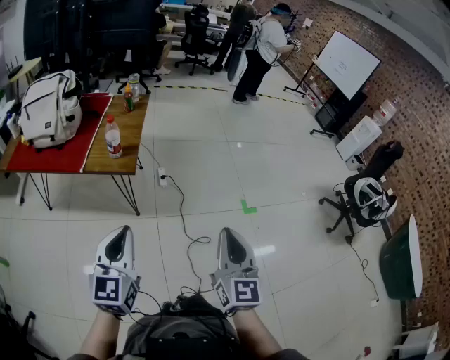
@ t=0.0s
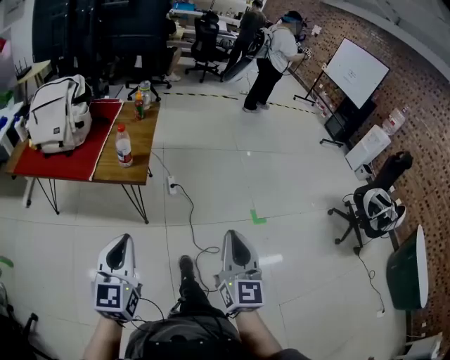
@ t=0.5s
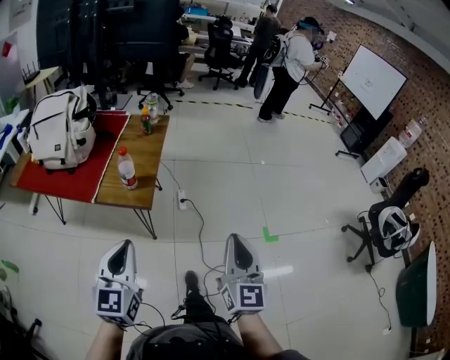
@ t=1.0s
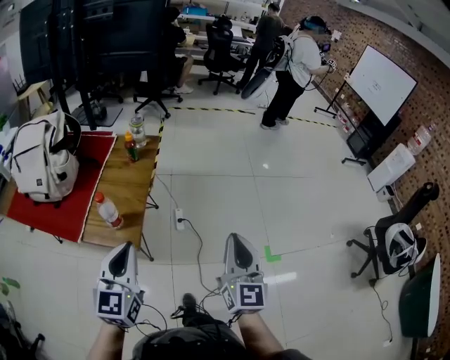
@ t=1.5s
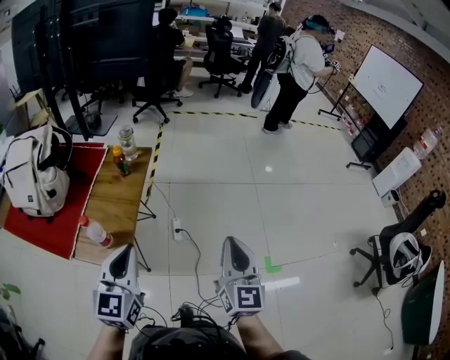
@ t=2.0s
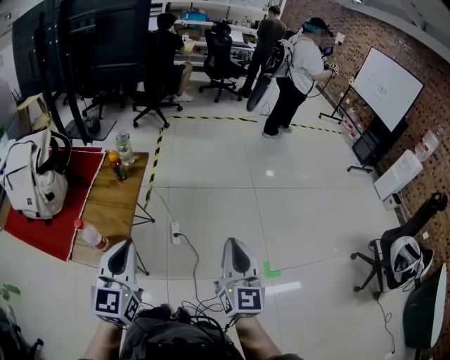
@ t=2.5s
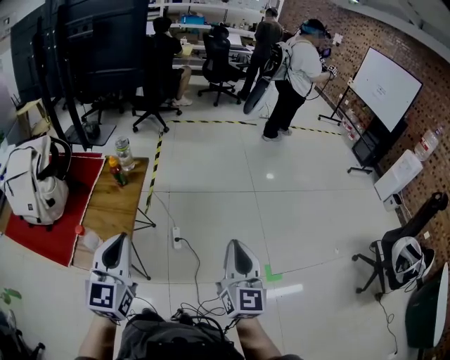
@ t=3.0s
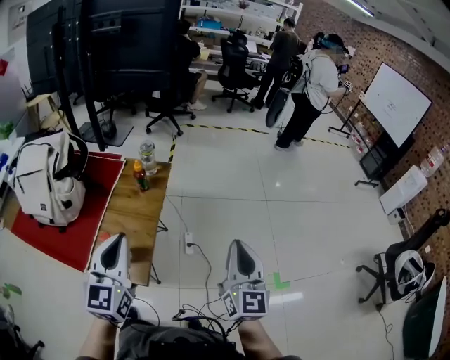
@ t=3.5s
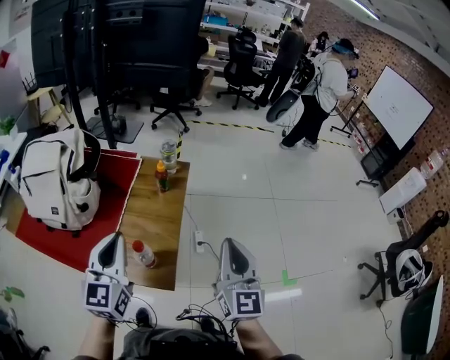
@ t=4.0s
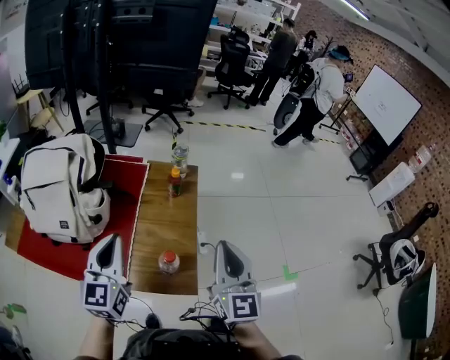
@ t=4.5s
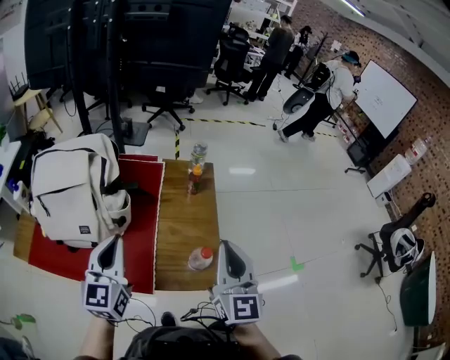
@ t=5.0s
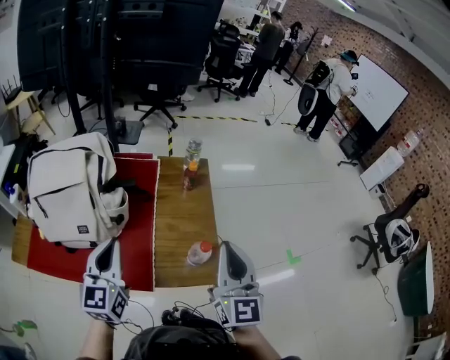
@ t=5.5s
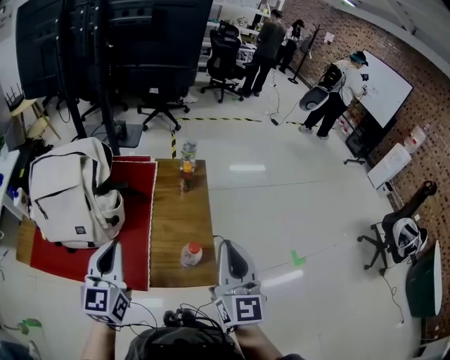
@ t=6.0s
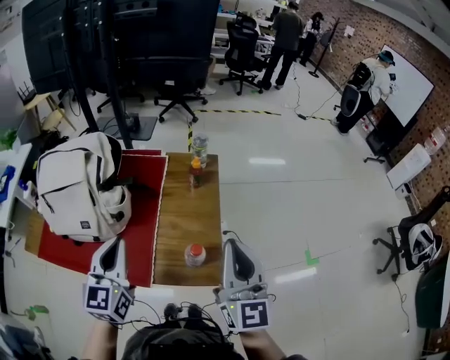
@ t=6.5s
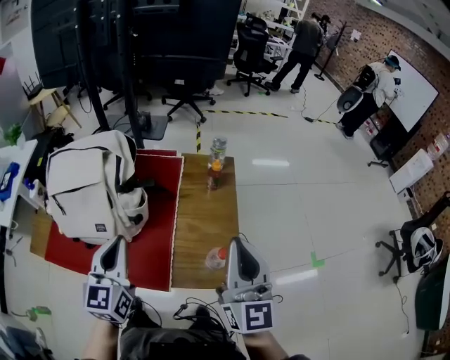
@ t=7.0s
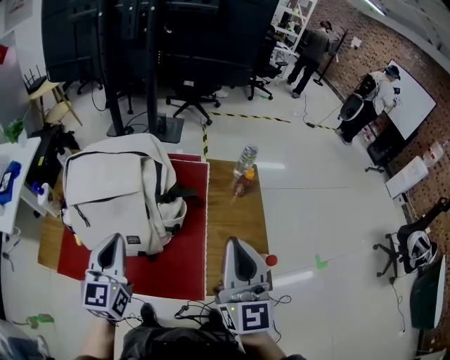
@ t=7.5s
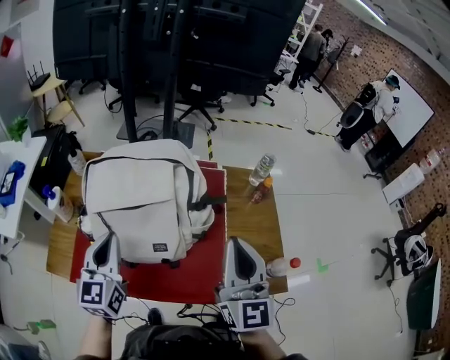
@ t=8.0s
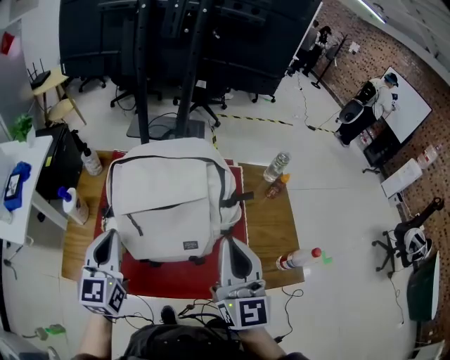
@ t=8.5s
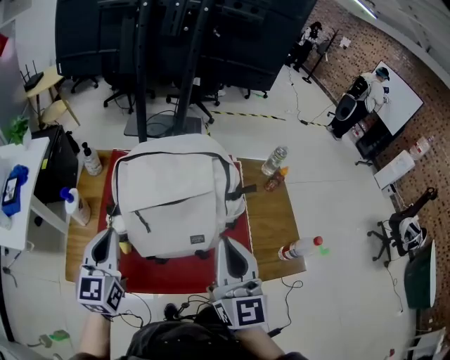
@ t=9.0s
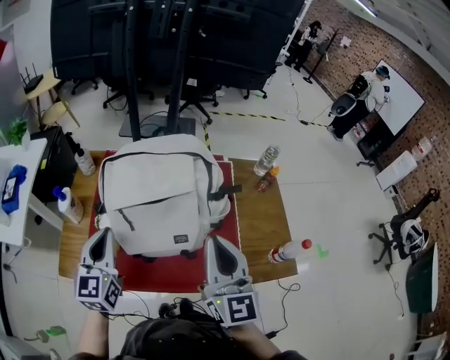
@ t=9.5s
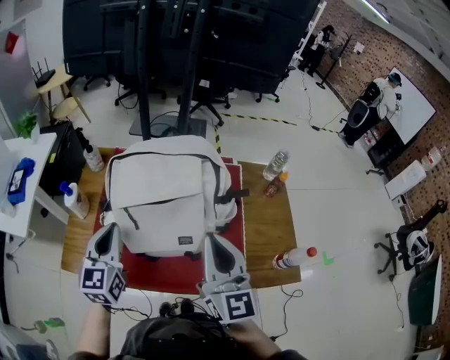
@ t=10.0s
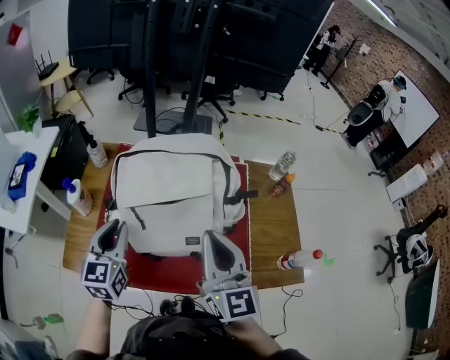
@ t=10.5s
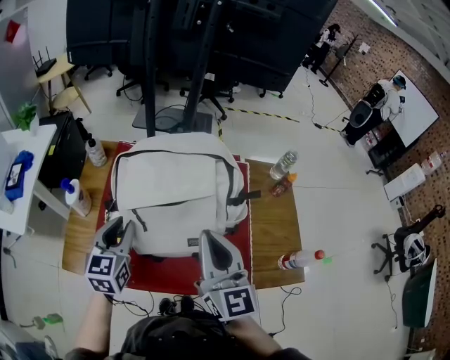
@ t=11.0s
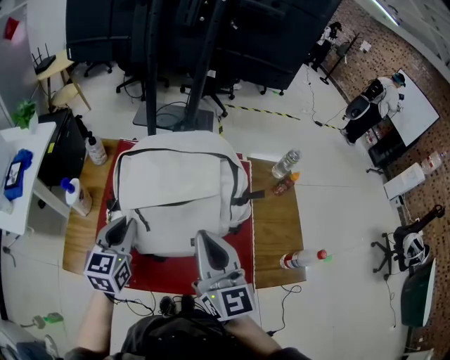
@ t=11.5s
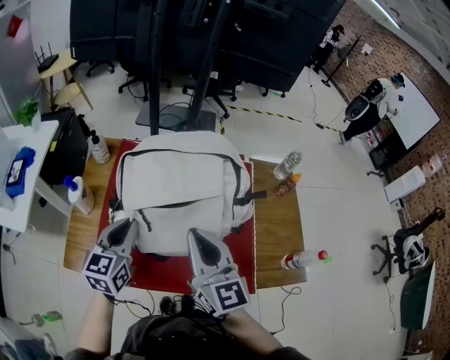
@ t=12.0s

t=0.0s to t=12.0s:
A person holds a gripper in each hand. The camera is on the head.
t=0.0s to t=2.0s: Both grippers are carried forward, some 50 cm.
t=2.0s to t=4.0s: Both grippers move to the left, roughly 25 cm.
t=4.0s to t=6.0s: The two grippers go approximately 20 cm to the left.
t=6.0s to t=8.0s: The two grippers go roughly 35 cm to the left.
t=8.0s to t=10.0s: Both grippers travel together to the left, about 10 cm.
t=10.0s to t=12.0s: The right gripper travels to the left by roughly 10 cm, while the left gripper moves roughly 5 cm.

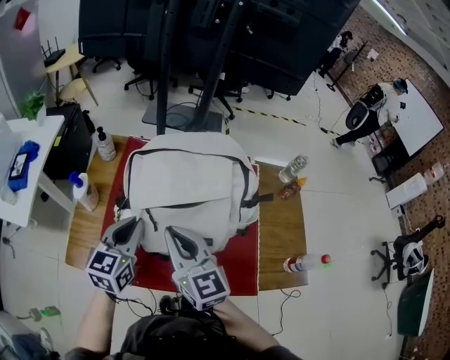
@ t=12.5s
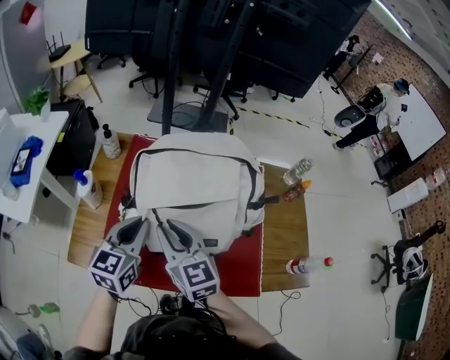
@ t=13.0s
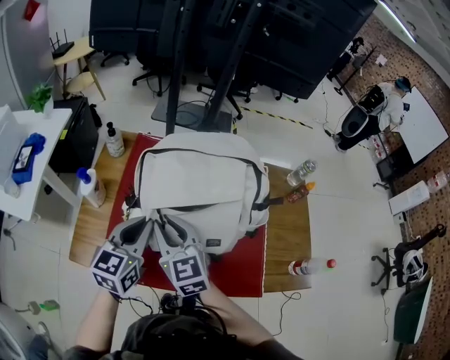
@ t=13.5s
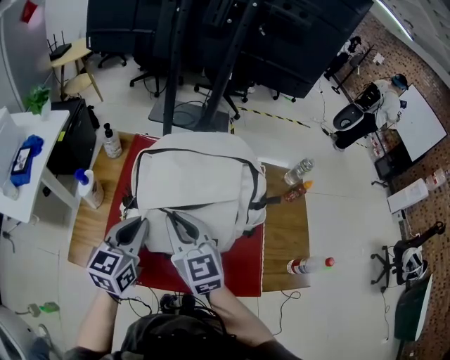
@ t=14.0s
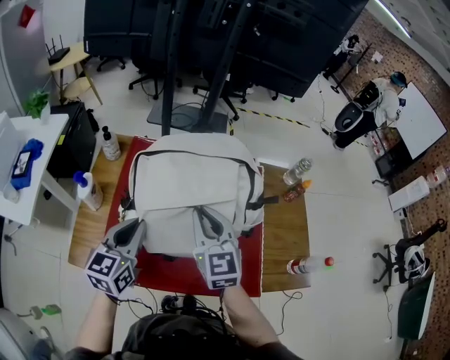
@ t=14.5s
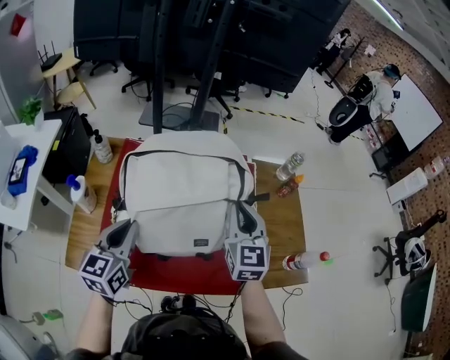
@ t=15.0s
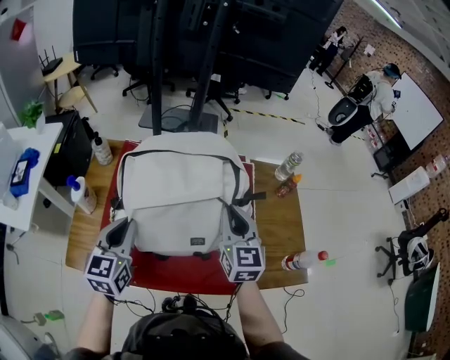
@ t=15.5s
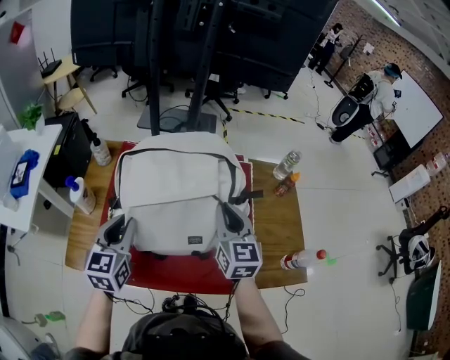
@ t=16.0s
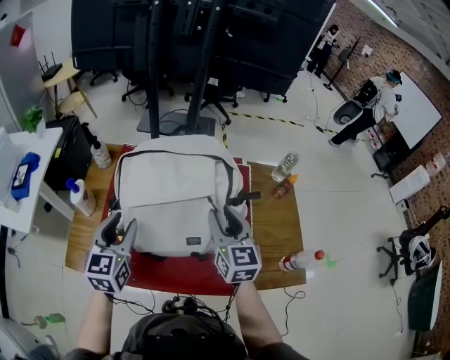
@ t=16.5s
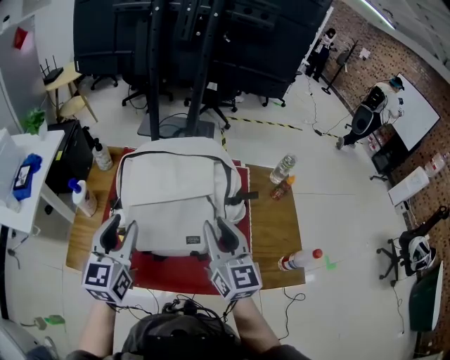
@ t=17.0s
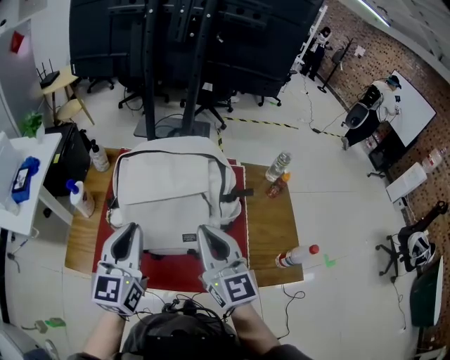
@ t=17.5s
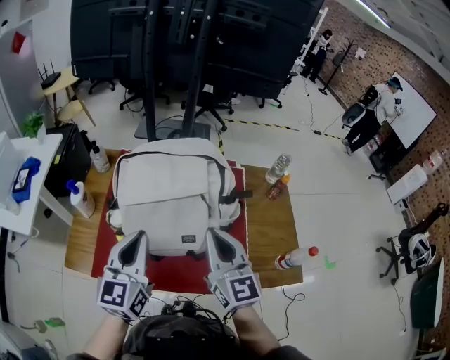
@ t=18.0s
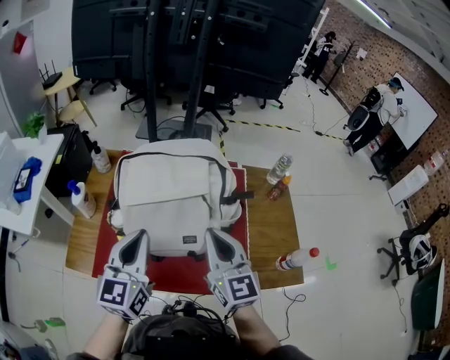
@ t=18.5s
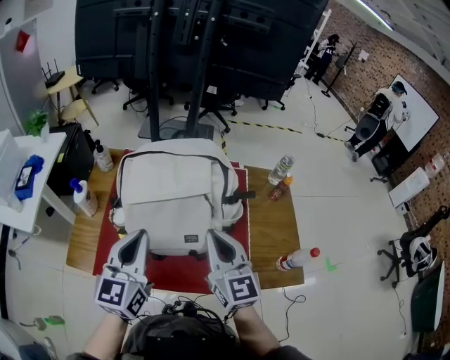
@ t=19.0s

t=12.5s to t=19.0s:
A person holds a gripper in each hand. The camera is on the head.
t=12.5s to t=14.5s: The right gripper heads forward and to the right, covering about 10 cm.
t=14.5s to t=17.0s: The left gripper travels upward by about 5 cm, and opens; the right gripper is displaced to the right and backward by some 10 cm.
t=17.0s to t=19.0s: The right gripper closes up, while the left gripper is displaced to the right by roughly 5 cm, and closes.

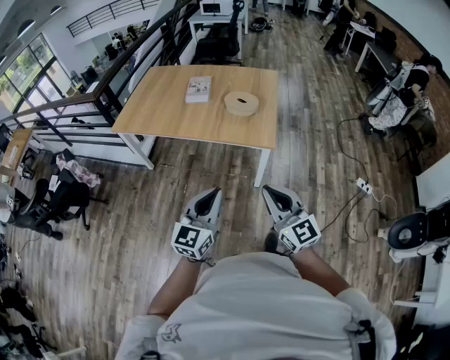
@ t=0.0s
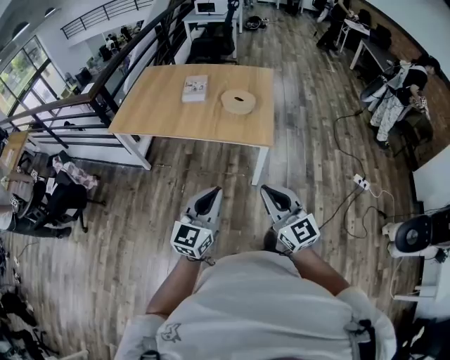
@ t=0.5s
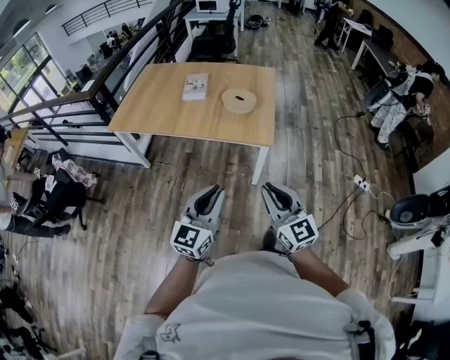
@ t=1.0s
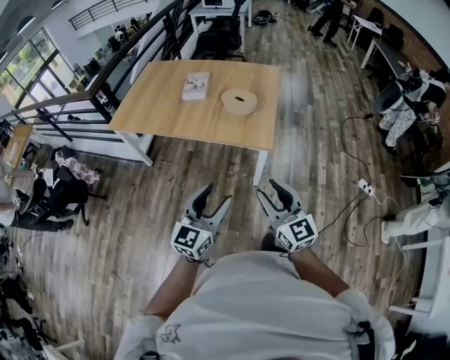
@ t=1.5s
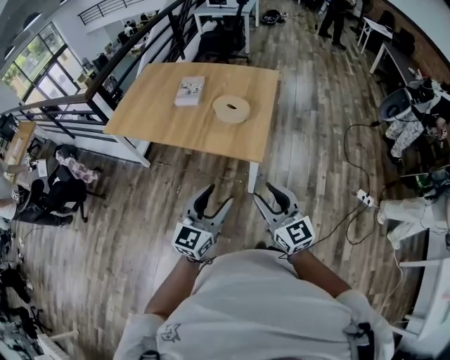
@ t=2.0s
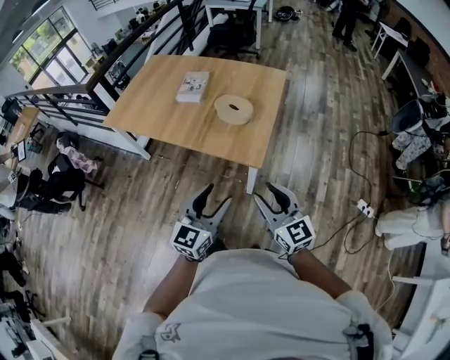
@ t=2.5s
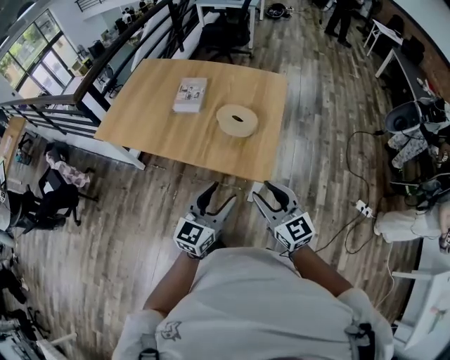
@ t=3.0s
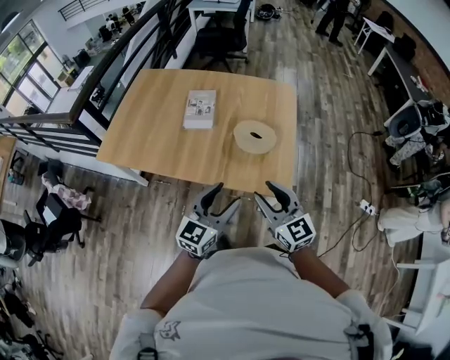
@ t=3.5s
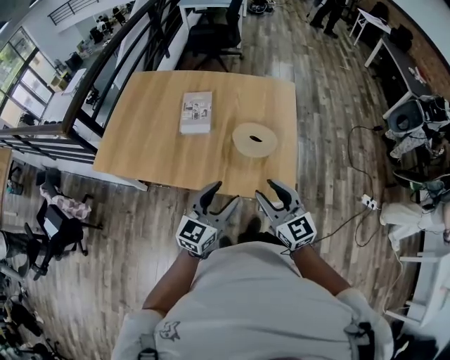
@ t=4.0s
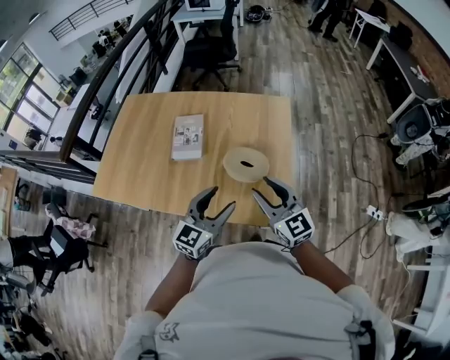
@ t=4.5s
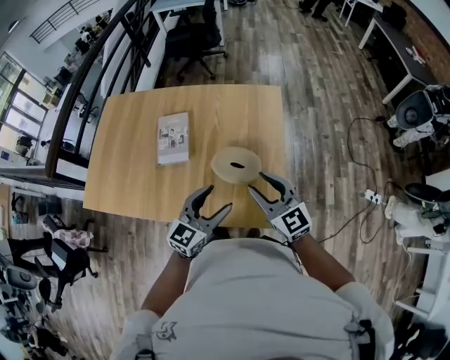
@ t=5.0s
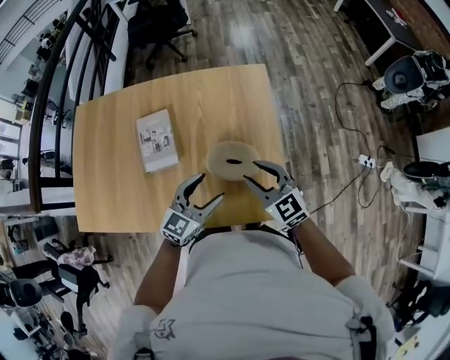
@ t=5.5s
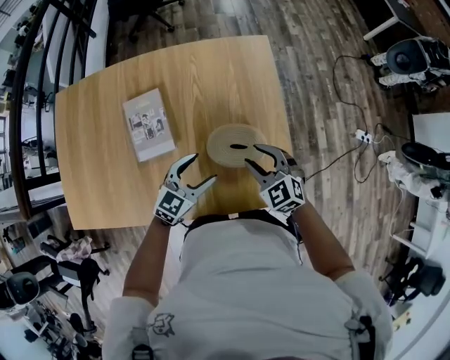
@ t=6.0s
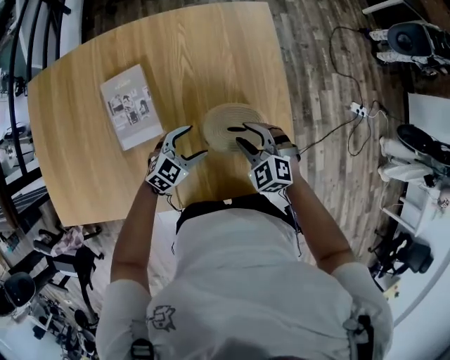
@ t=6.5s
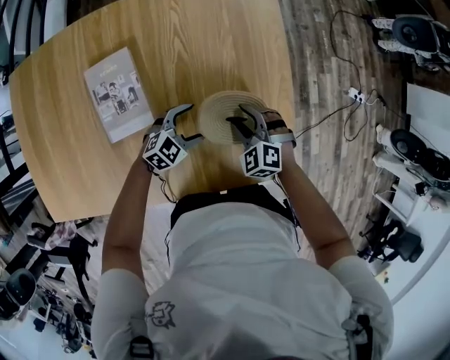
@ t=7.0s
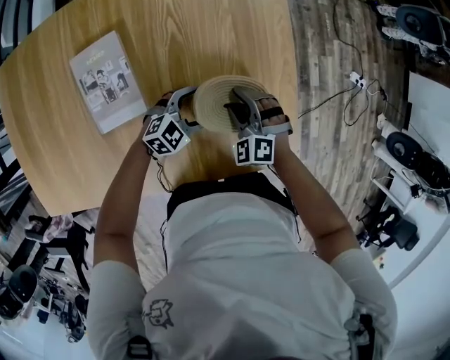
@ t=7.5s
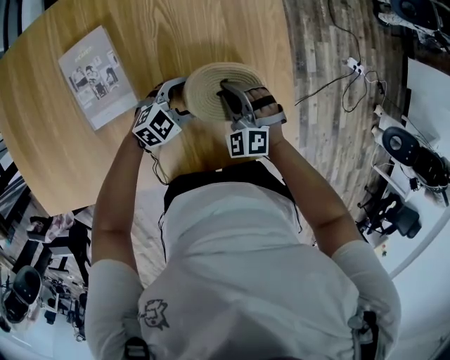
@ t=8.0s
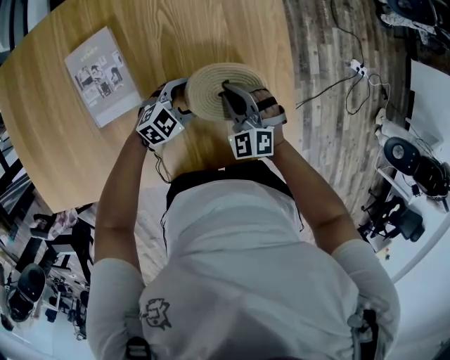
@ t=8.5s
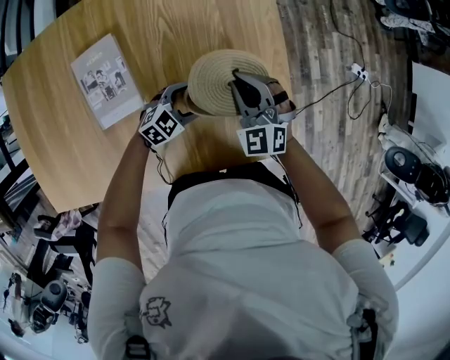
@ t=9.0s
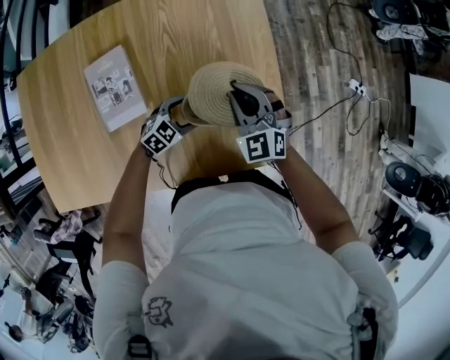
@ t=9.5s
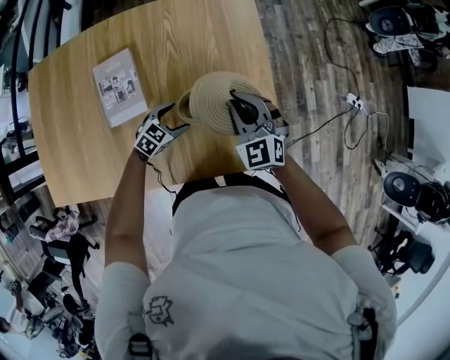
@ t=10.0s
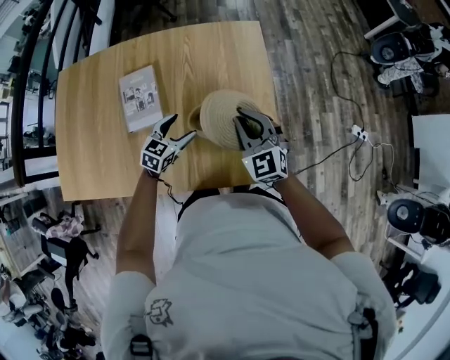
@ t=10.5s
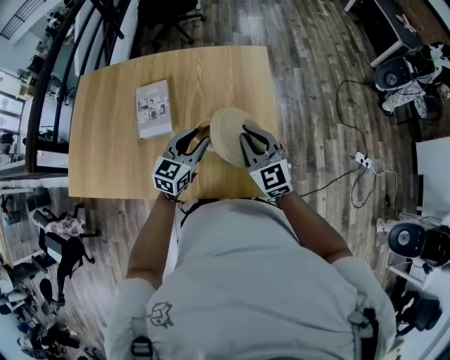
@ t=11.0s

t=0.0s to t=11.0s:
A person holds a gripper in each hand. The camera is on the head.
t=0.0s to t=2.0s: The grippers both shift to the right and forward by roughly 15 cm. The left gripper opens up. The right gripper opens up.
t=2.0s to t=3.5s: Both grippers travel together forward and to the left, roughly 30 cm.
t=3.5s to t=5.5s: The grippers both shift forward by some 25 cm. The left gripper turns by about 20 degrees.
t=5.5s to t=7.5s: The grippers both shift downward by approximately 25 cm. The left gripper swivels approximately 40 degrees, while the right gripper swivels roughly 50 degrees.
t=7.5s to t=9.0s: The right gripper heads upward, covering approximately 10 cm, changes its angle by roughly 20 degrees, and closes its fingers.
t=9.0s to t=11.0s: The right gripper goes approximately 15 cm upward, and swivels some 30 degrees; the left gripper moves upward, approximately 25 cm, swivels some 50 degrees, and closes up.
